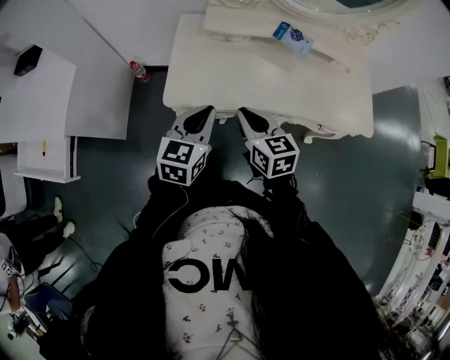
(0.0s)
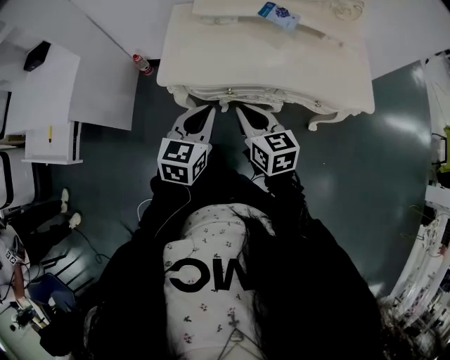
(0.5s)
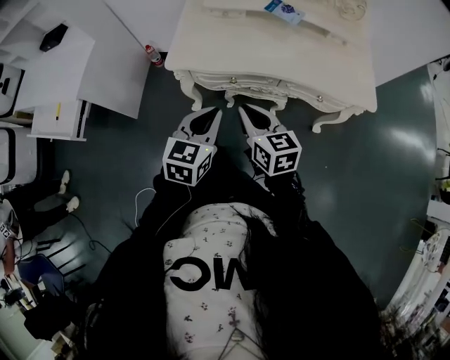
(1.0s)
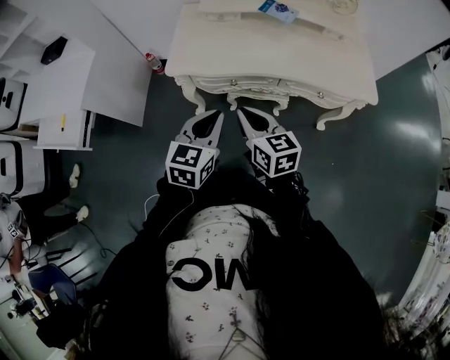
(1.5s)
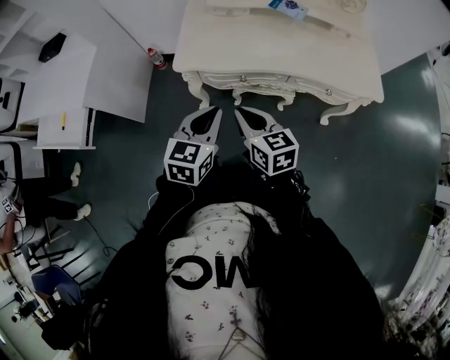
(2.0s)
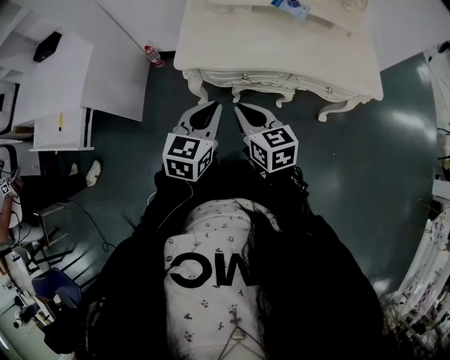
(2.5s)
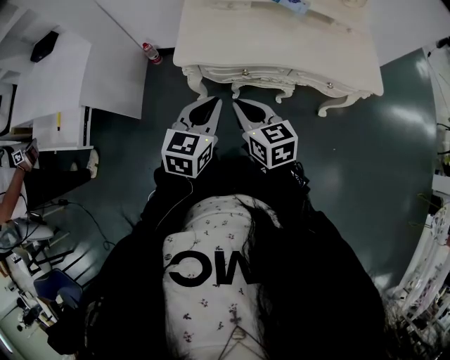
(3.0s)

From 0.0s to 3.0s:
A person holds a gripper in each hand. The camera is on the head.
From 0.0s to 1.5s: Both grippers move backward, approximately 15 cm.
From 1.5s to 3.0s: The grippers both shift to the left by roughly 10 cm.

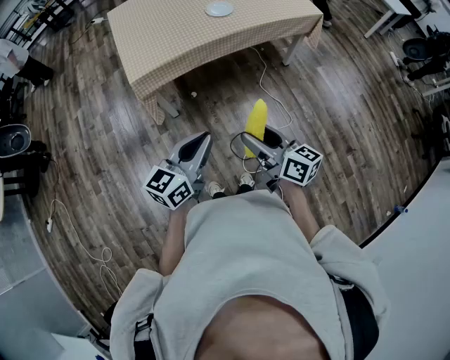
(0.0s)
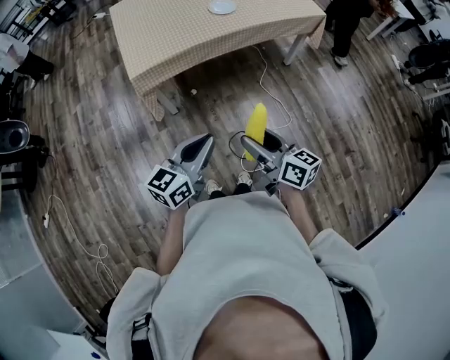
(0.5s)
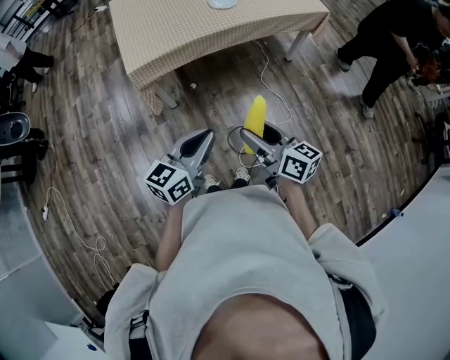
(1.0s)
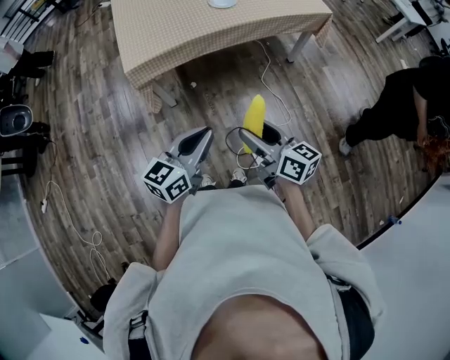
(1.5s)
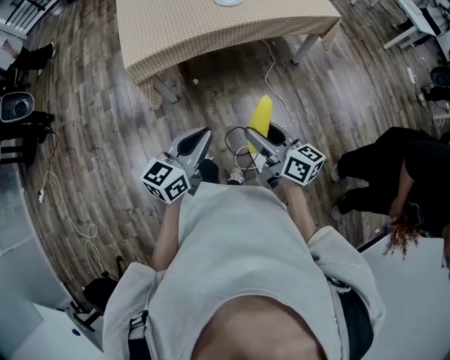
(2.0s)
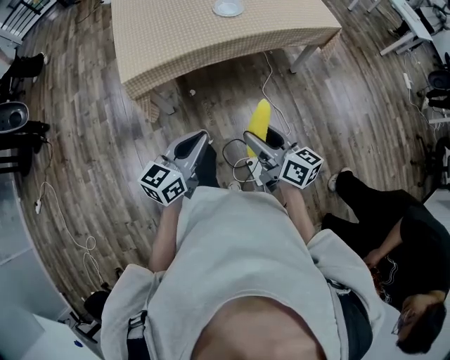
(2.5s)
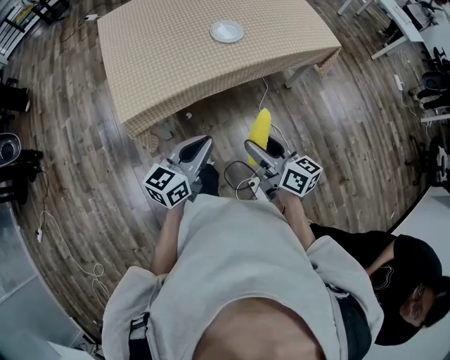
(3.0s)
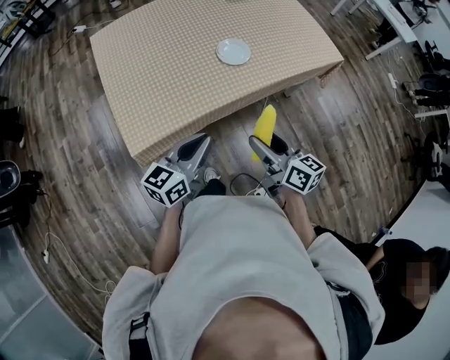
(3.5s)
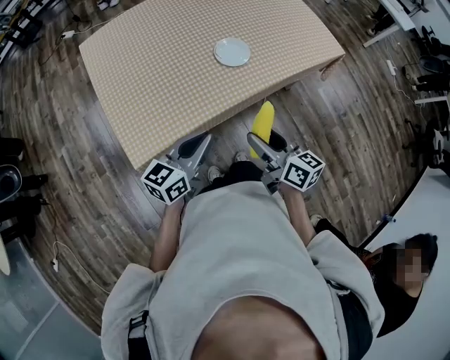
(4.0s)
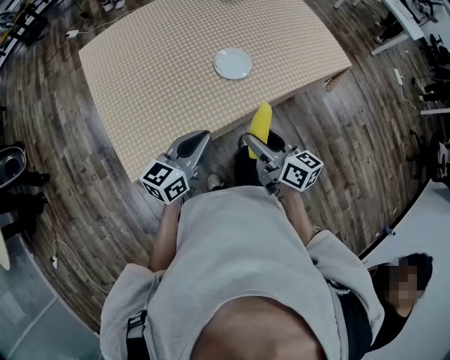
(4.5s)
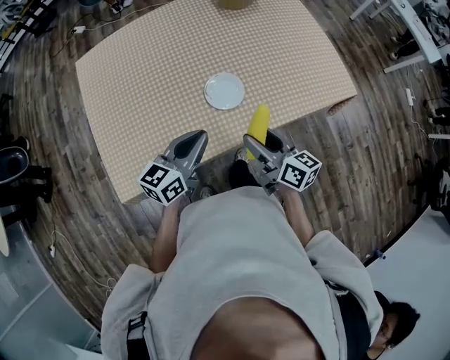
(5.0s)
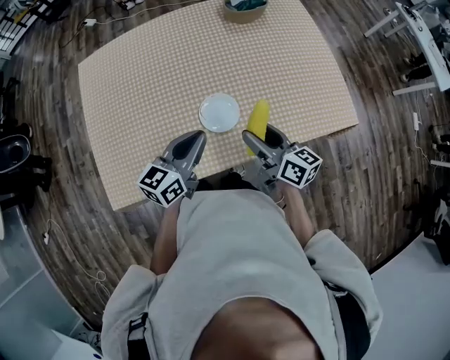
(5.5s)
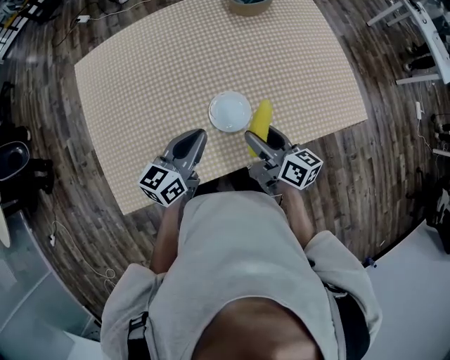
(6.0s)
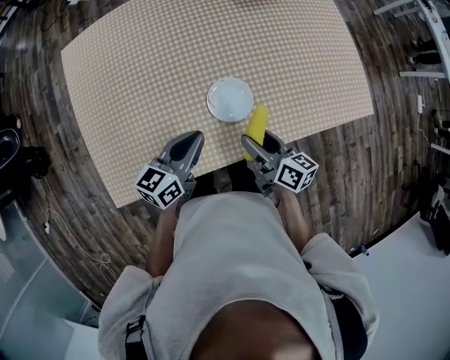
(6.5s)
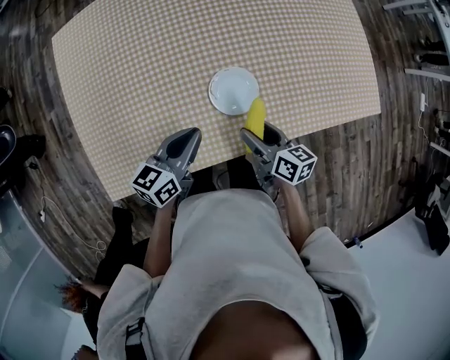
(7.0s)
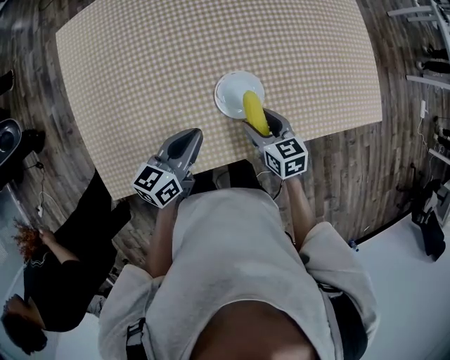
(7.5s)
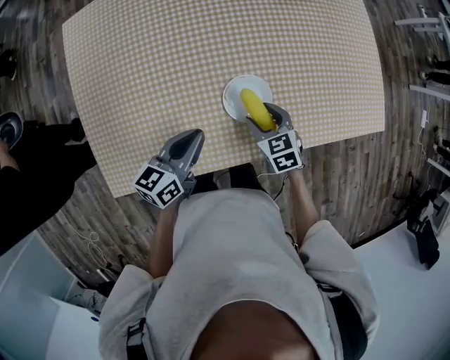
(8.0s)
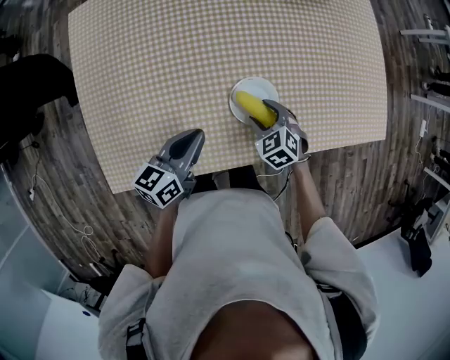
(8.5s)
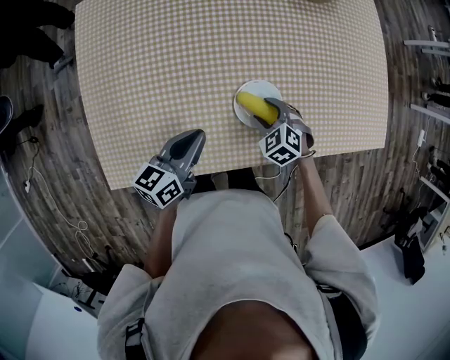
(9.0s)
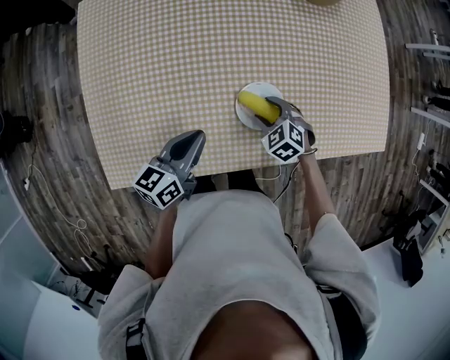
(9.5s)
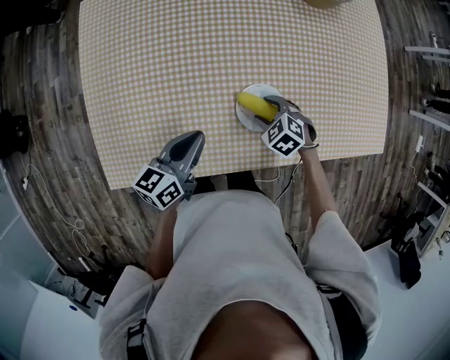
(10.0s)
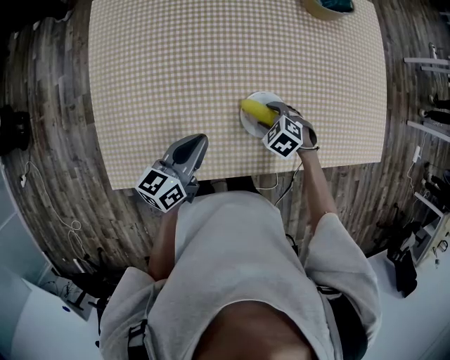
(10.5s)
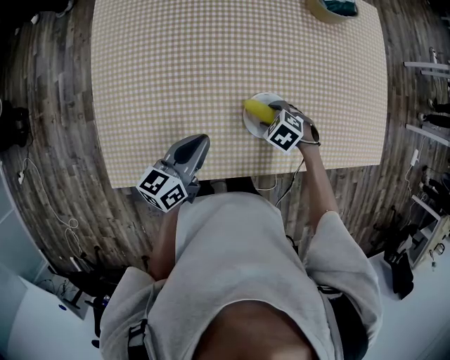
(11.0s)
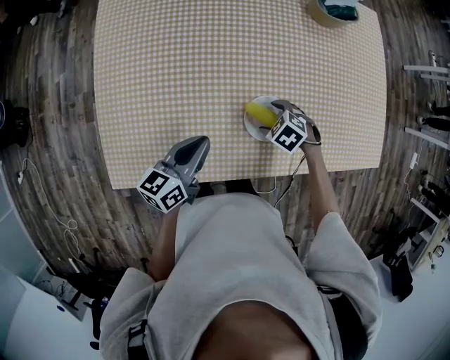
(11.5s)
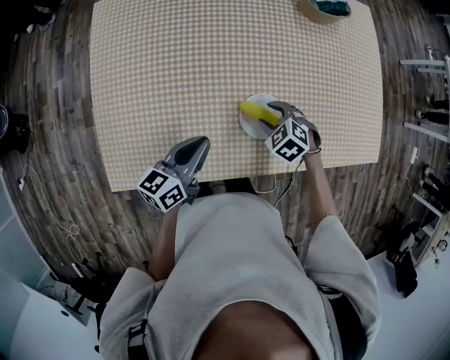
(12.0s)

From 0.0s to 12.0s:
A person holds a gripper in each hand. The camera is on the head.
From 0.0s to 2.0s: Both grippers travel together to the right, about 5 cm.
From 2.0s to 4.0s: Both grippers move forward, about 40 cm.
From 4.0s to 6.0s: The grippers both shift forward by approximately 30 cm.
From 6.0s to 8.0s: The right gripper moves downward, some 15 cm, and tilts its fingers some 40 degrees downward. The left gripper shifts approximately 10 cm downward and to the left.
From 8.0s to 10.0s: The right gripper moves about 5 cm, and swivels about 40 degrees.
From 10.0s to 12.0s: There are only small adjustments of the grippers.

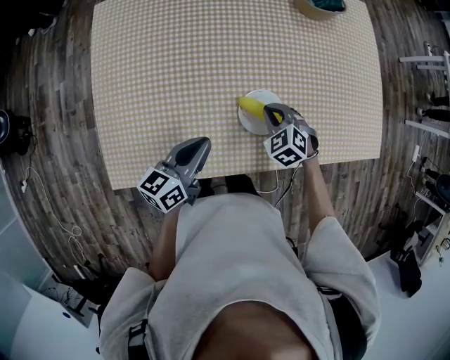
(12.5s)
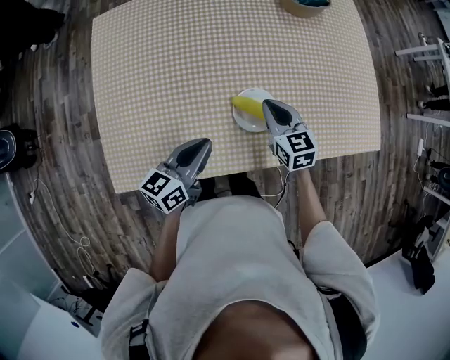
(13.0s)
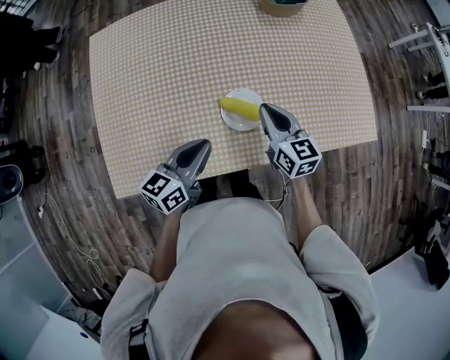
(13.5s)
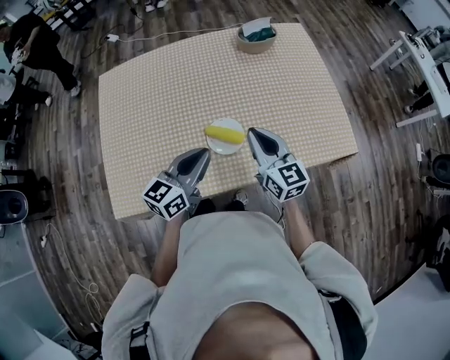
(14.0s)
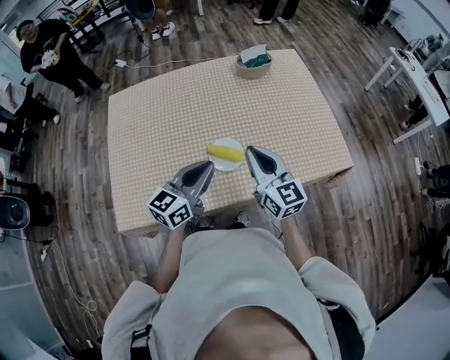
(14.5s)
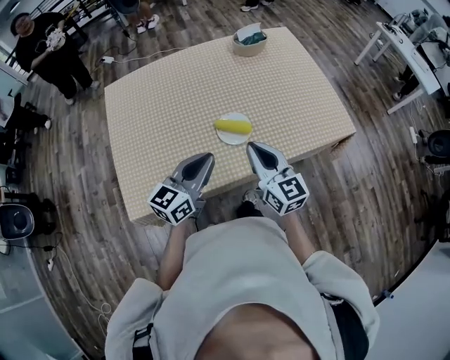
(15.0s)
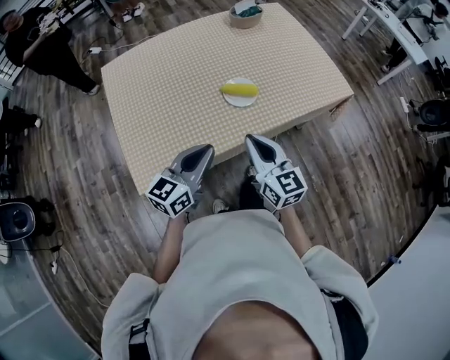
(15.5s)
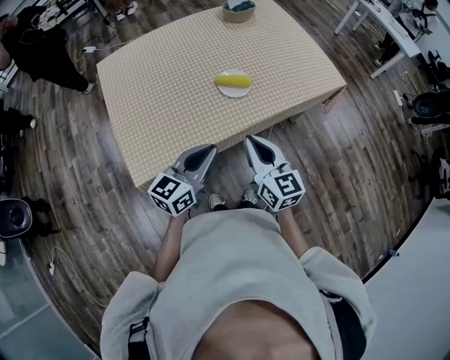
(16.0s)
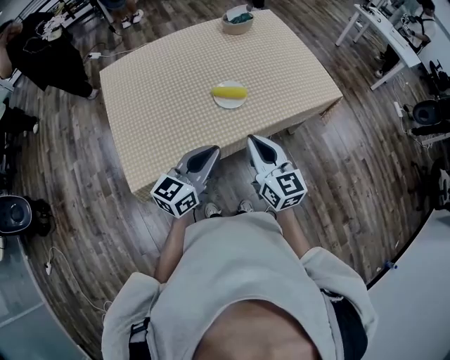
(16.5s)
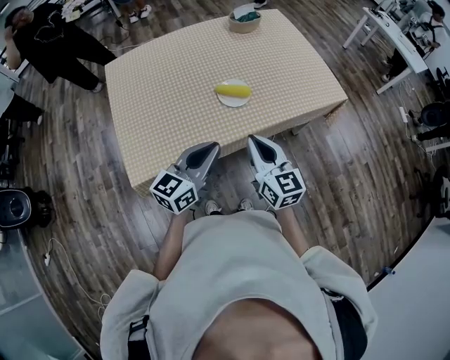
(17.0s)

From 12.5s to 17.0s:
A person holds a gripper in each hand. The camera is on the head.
From 12.5s to 14.5s: The left gripper goes roughly 20 cm upward and to the right, and swivels some 30 degrees, while the right gripper heads upward, covering about 25 cm, and points its fingers about 60 degrees further upward.
From 14.5s to 17.0s: The grippers both shift backward by about 20 cm.

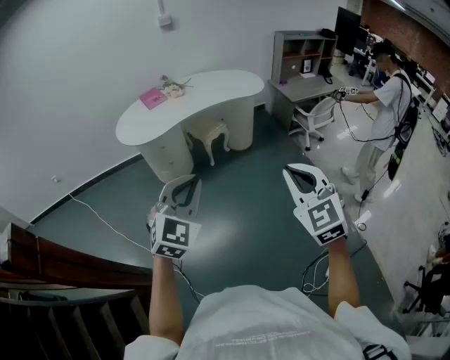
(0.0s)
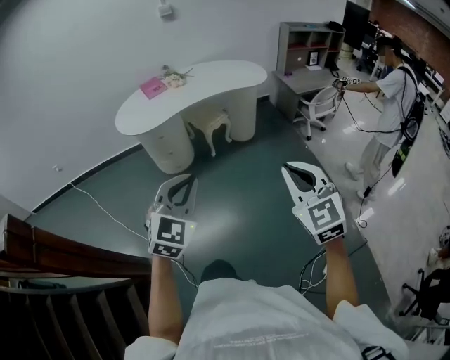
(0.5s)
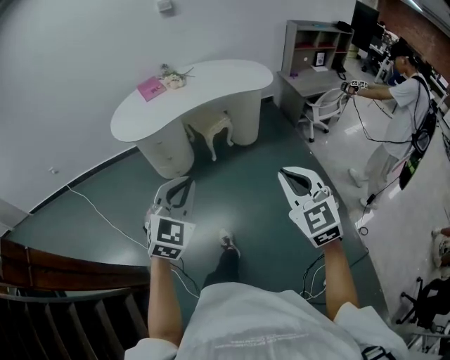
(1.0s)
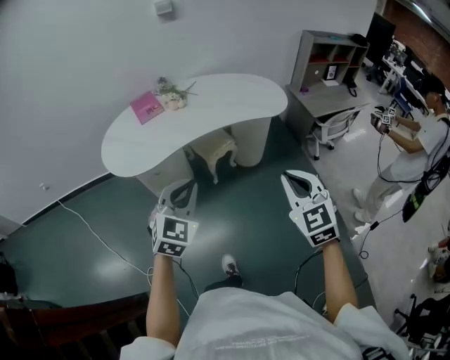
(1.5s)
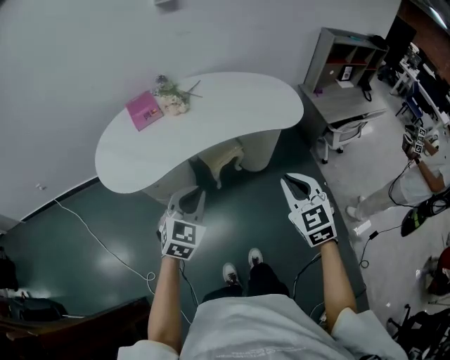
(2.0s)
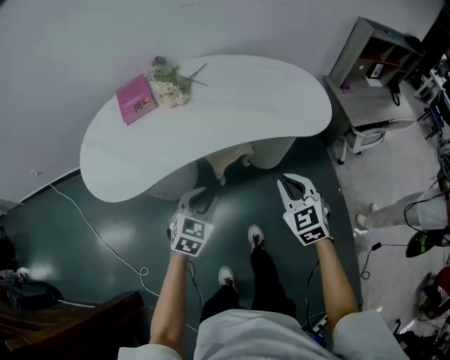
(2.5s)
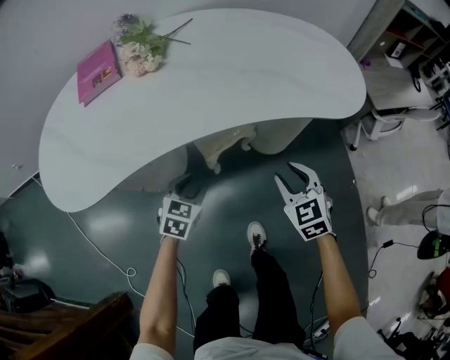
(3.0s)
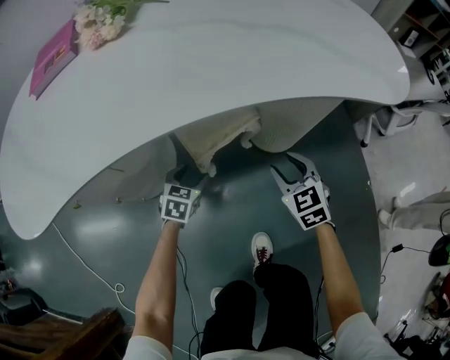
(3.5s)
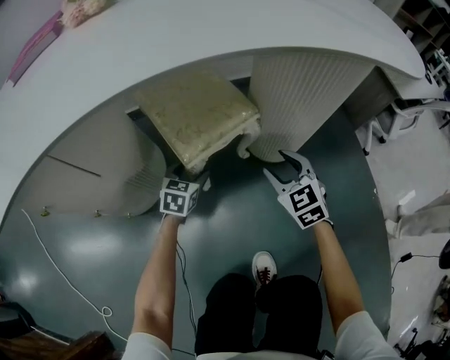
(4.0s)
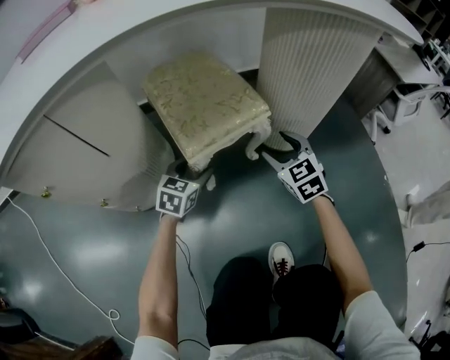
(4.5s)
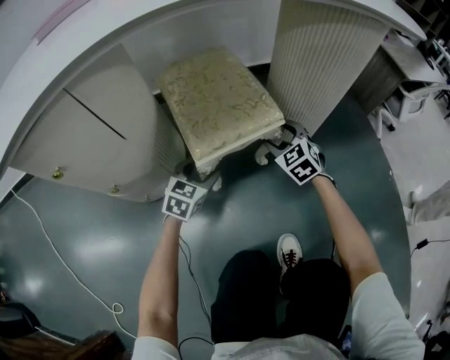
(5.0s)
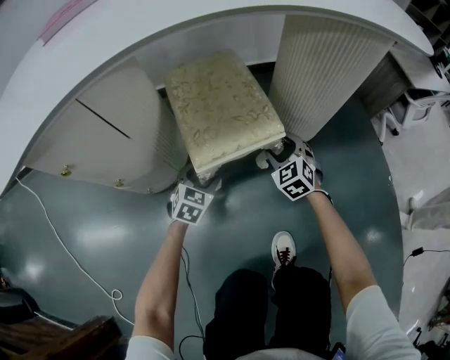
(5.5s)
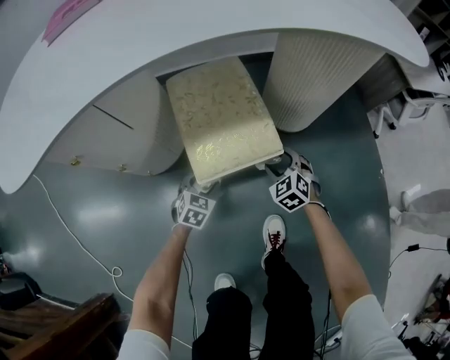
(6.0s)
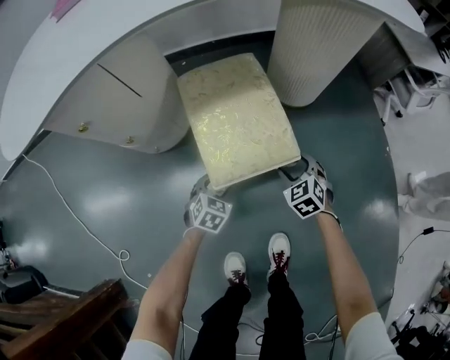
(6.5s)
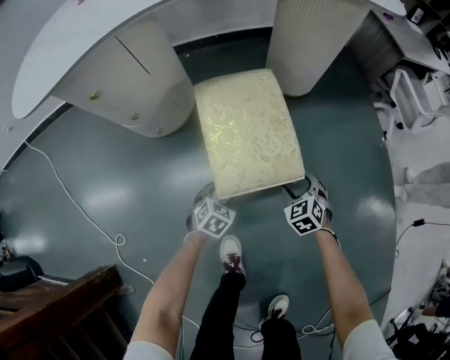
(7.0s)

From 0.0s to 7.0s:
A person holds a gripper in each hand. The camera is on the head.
From 0.0s to 2.0s: The pair of grippers is taken forward, roughly 50 cm. The left gripper changes its angle by some 20 degrees.
From 2.0s to 3.5s: Both grippers travel together downward and forward, about 70 cm. The left gripper changes its angle by some 30 degrees, and opens up. Meanwhile the right gripper opens up.
From 3.5s to 5.0s: The right gripper heads downward and to the left, covering roughly 20 cm, and opens, while the left gripper shifts approximately 10 cm downward.
From 5.0s to 7.0s: Both grippers travel together backward, about 35 cm. The left gripper changes its angle by some 30 degrees.
